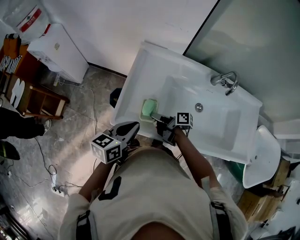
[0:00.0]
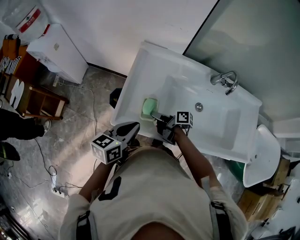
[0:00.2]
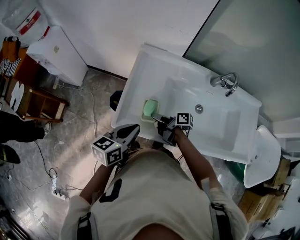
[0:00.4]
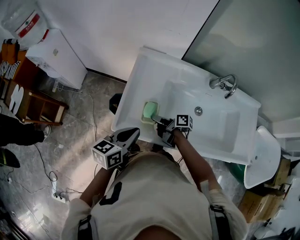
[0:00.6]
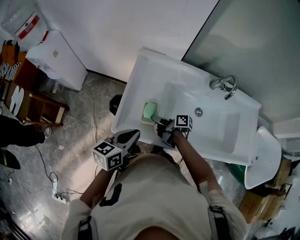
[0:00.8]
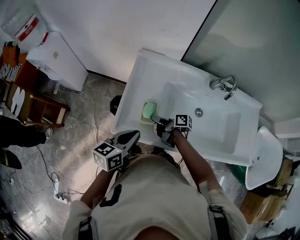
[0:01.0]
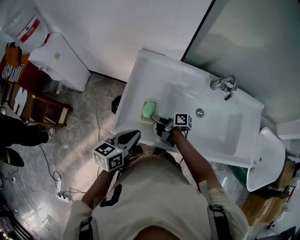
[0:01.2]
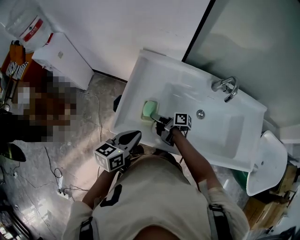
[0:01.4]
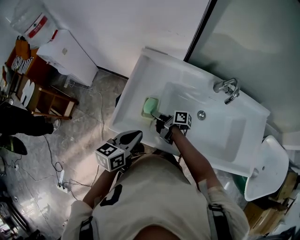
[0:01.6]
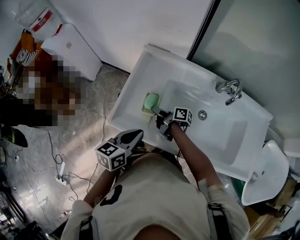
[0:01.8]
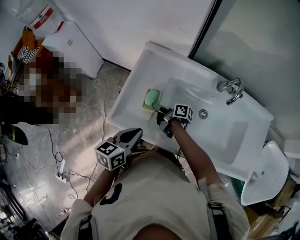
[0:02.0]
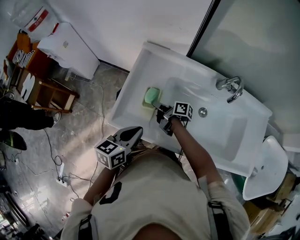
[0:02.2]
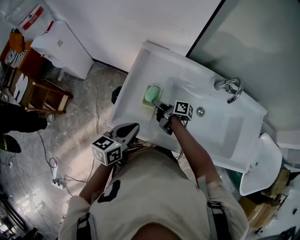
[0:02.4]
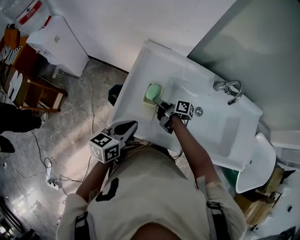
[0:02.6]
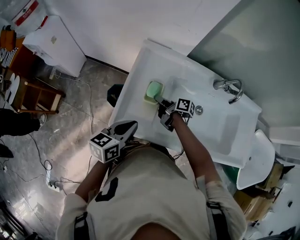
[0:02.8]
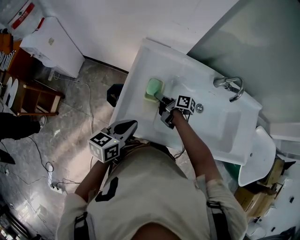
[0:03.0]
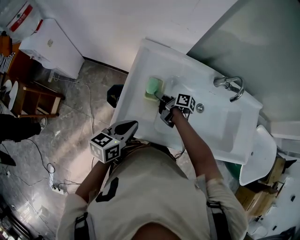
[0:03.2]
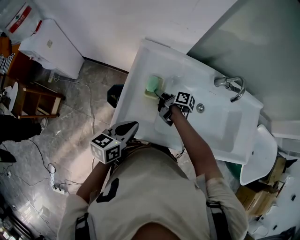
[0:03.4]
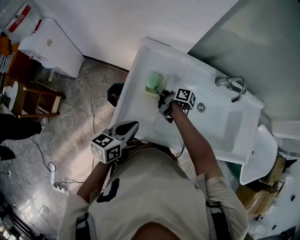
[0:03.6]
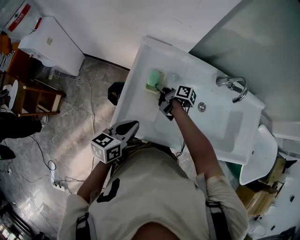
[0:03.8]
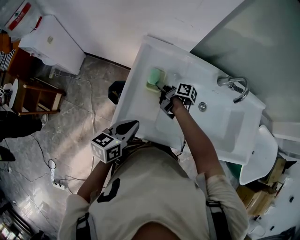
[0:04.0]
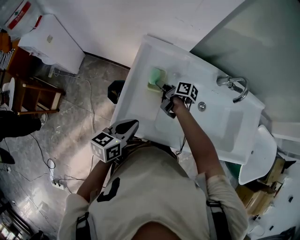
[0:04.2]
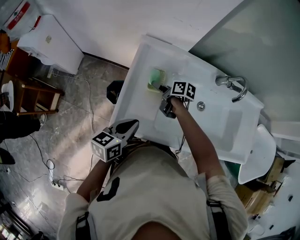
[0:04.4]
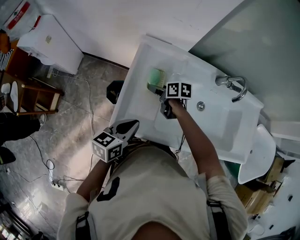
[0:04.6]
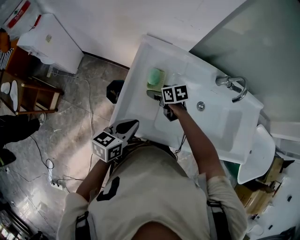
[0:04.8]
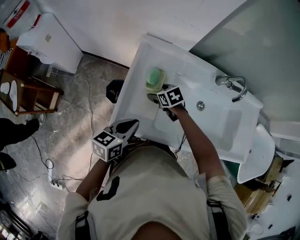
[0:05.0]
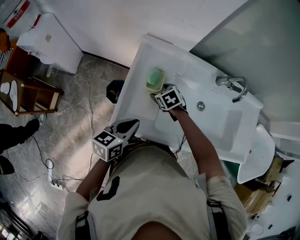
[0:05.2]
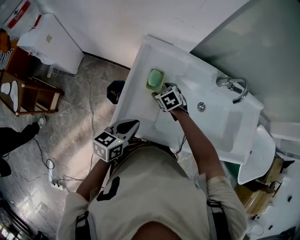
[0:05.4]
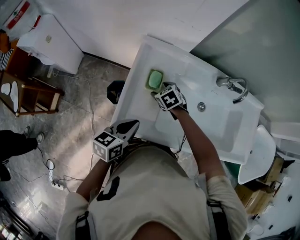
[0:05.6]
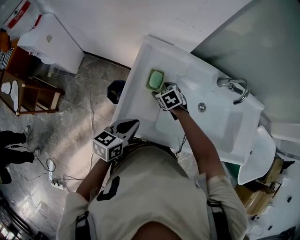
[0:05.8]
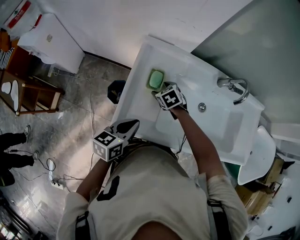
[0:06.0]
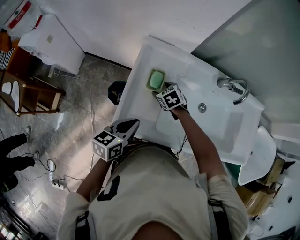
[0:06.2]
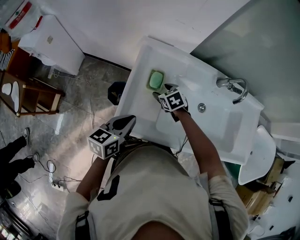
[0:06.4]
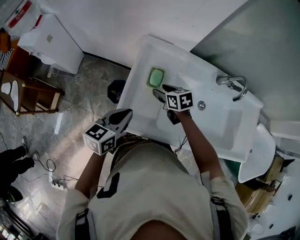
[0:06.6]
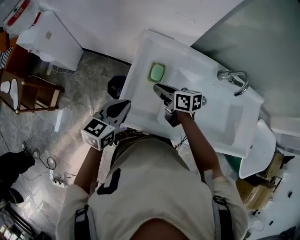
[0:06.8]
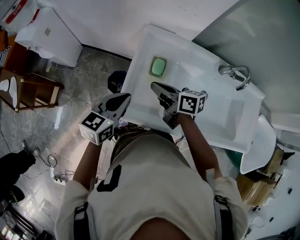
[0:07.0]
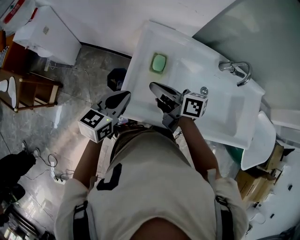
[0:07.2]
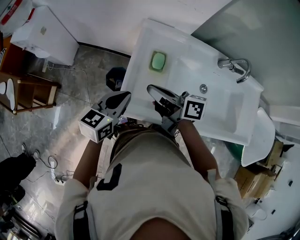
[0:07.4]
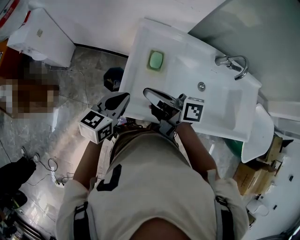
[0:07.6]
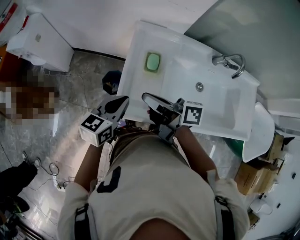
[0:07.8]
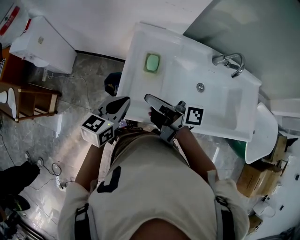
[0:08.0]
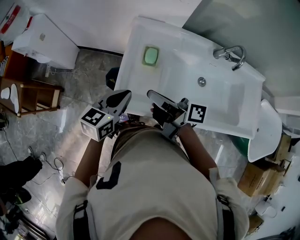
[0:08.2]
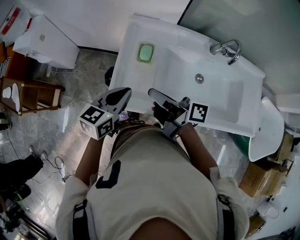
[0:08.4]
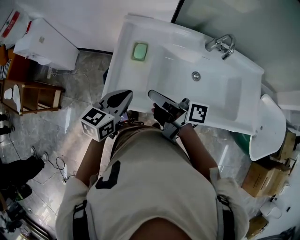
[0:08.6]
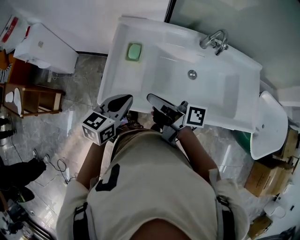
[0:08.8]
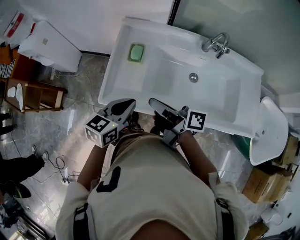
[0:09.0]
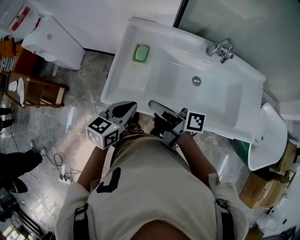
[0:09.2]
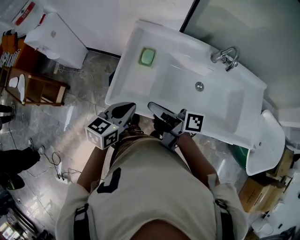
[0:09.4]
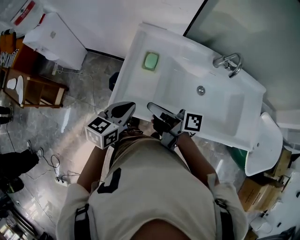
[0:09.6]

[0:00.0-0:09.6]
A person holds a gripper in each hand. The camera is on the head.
0:01.6 to 0:03.2: The left gripper moves approximately 10 cm.

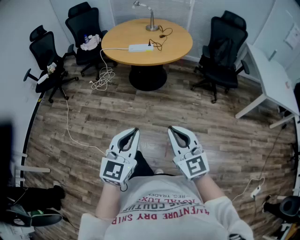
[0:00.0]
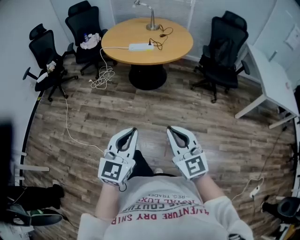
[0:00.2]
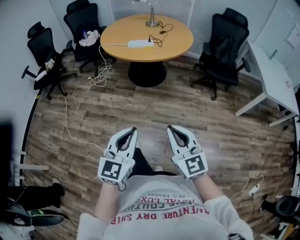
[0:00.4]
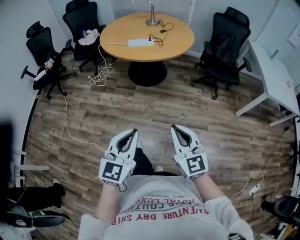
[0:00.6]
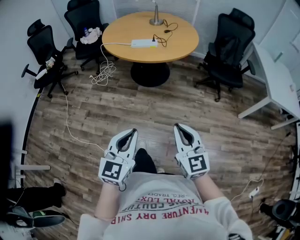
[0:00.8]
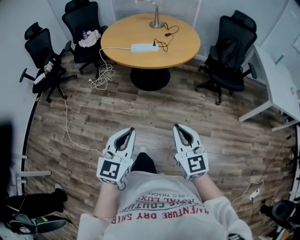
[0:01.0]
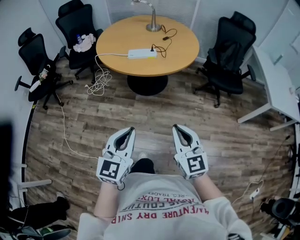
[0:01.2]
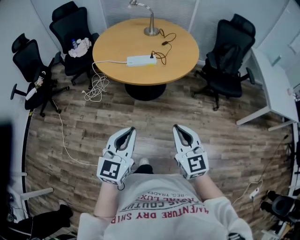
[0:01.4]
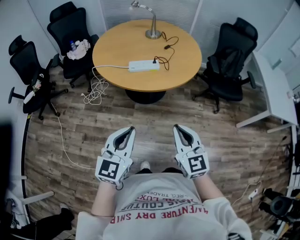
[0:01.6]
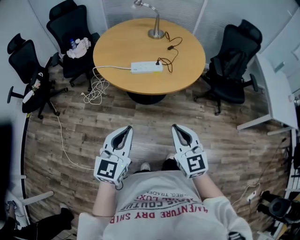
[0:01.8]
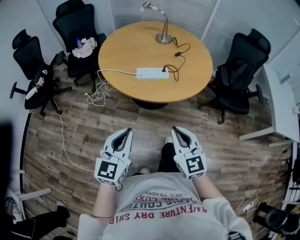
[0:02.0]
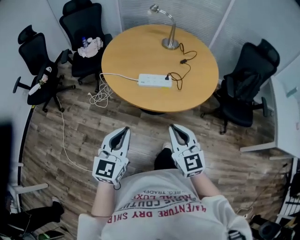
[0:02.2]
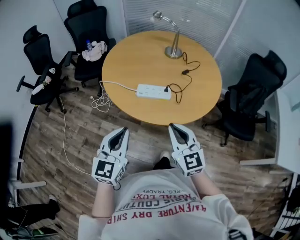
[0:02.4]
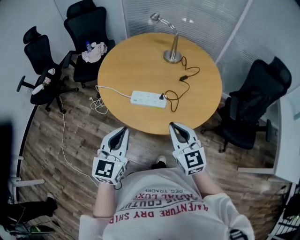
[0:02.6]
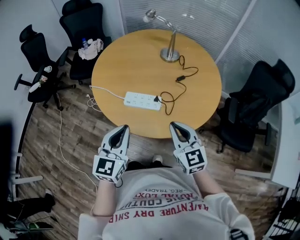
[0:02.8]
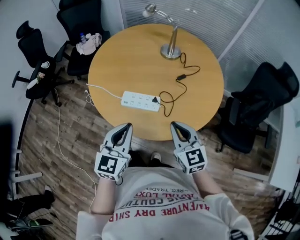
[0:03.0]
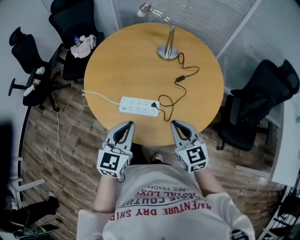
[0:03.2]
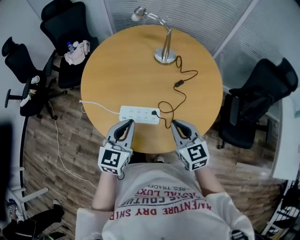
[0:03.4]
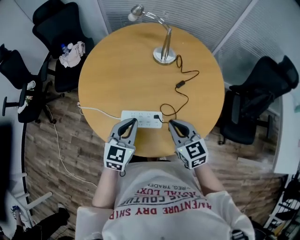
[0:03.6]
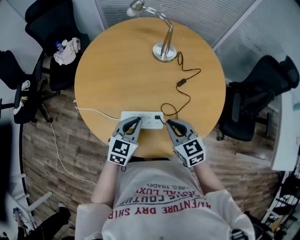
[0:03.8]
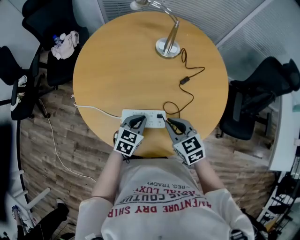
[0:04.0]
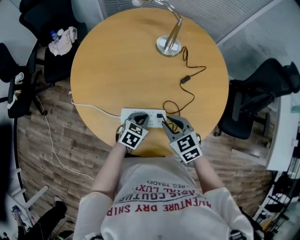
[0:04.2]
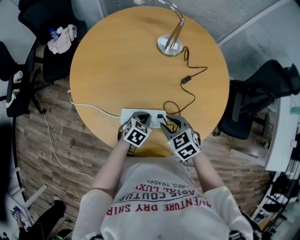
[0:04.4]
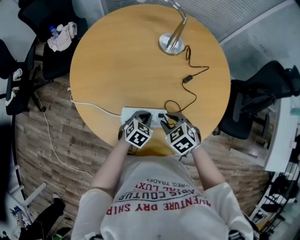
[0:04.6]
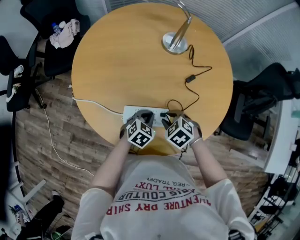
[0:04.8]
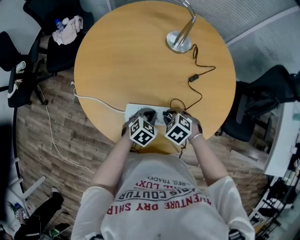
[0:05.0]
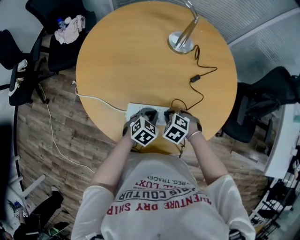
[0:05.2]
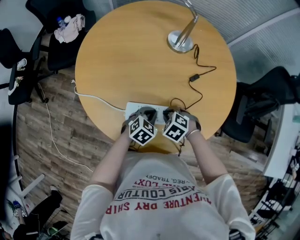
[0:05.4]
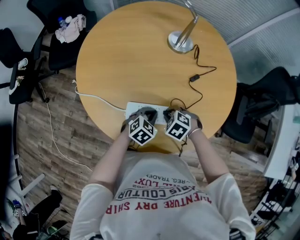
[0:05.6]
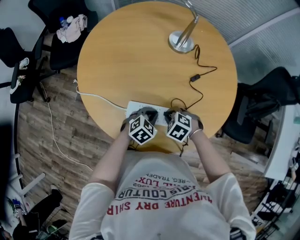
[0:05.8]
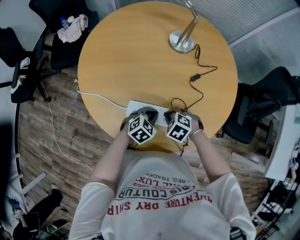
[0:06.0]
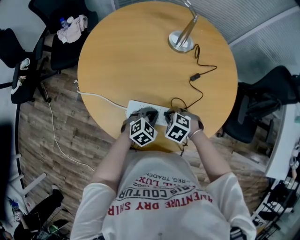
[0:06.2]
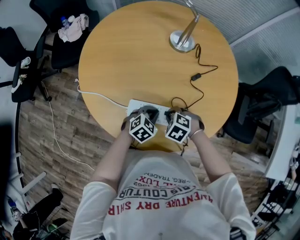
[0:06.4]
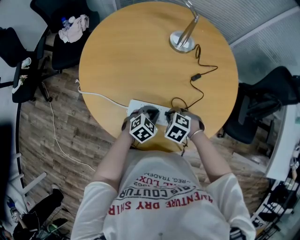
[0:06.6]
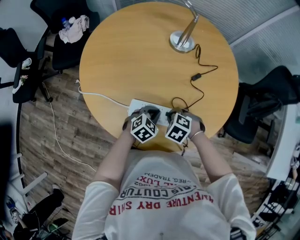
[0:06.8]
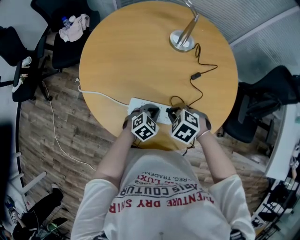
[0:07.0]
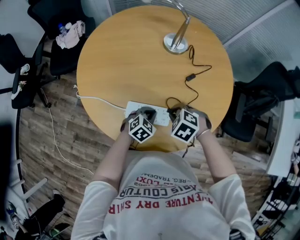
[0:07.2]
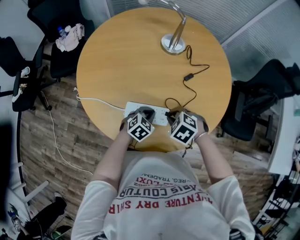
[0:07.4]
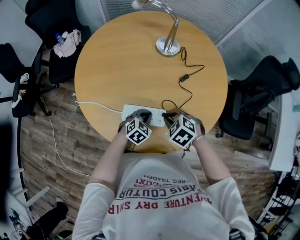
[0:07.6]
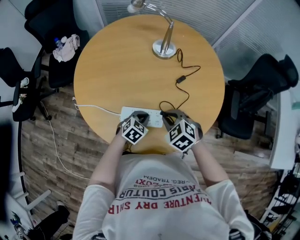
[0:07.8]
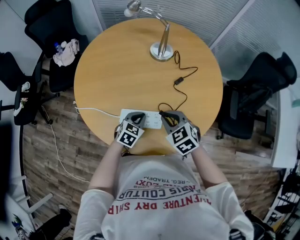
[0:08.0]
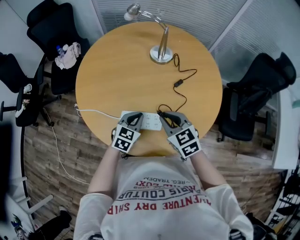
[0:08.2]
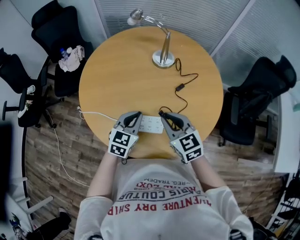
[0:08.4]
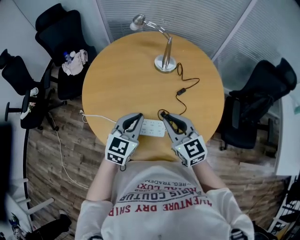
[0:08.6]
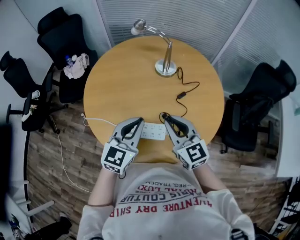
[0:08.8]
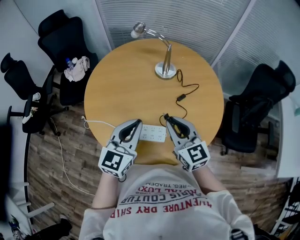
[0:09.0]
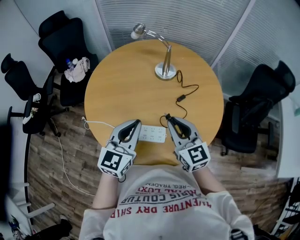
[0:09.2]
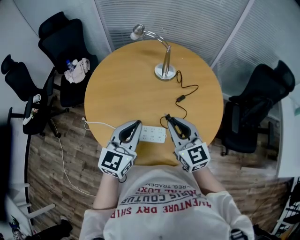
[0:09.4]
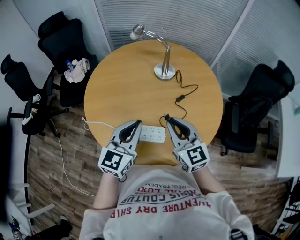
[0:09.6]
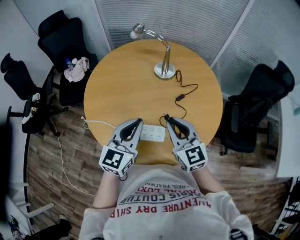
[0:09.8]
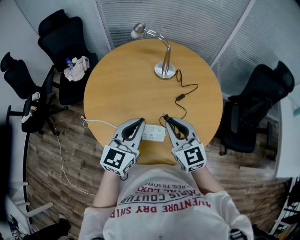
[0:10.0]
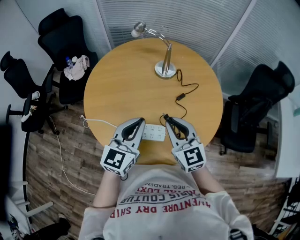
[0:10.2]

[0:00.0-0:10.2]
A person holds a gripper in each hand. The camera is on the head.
0:00.0 to 0:01.4: The two grippers go approximately 25 cm forward.
0:01.4 to 0:03.0: The pair of grippers is taken forward, approximately 40 cm. The right gripper rotates about 20 degrees.
0:03.0 to 0:04.4: The right gripper travels downward, forward and to the left by roughly 20 cm, angles its fingers downward, by roughly 40 degrees, and opens its fingers, while the left gripper goes some 30 cm downward and forward, and points its fingers some 40 degrees further downward.
0:04.4 to 0:05.8: The right gripper travels downward by roughly 10 cm, and turns by about 30 degrees.
0:05.8 to 0:07.2: The right gripper is displaced upward by about 5 cm.
0:07.2 to 0:08.8: Both grippers move upward, approximately 25 cm. The right gripper tips its fingers upward by some 60 degrees, while the left gripper angles its fingers upward, by about 40 degrees.
0:08.8 to 0:10.2: The grippers move only a little.

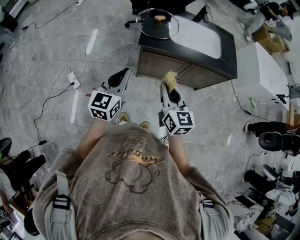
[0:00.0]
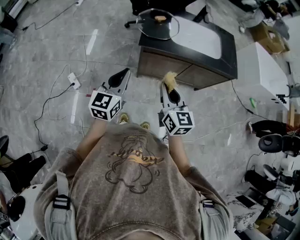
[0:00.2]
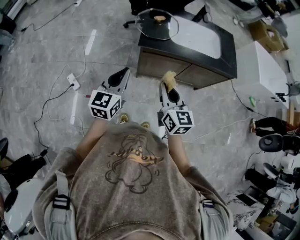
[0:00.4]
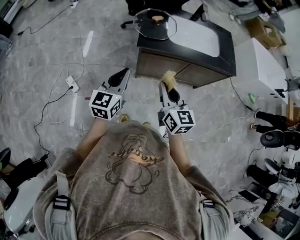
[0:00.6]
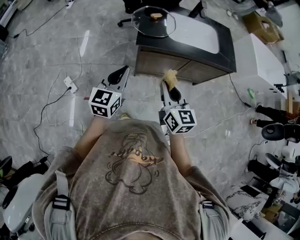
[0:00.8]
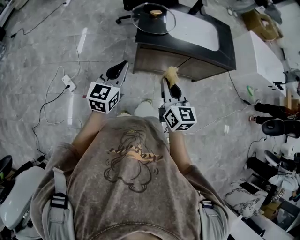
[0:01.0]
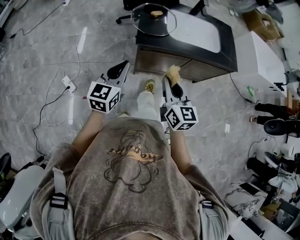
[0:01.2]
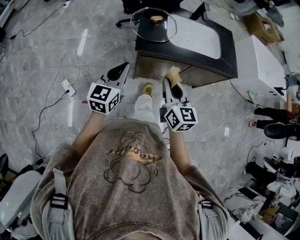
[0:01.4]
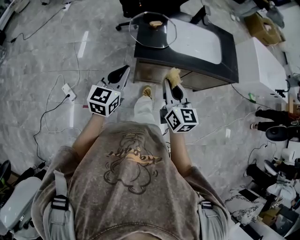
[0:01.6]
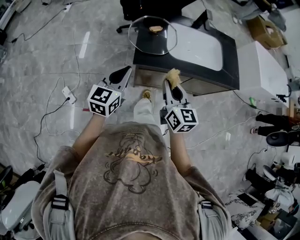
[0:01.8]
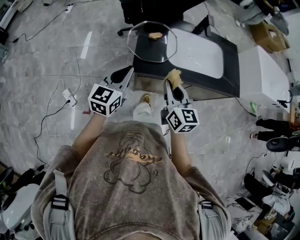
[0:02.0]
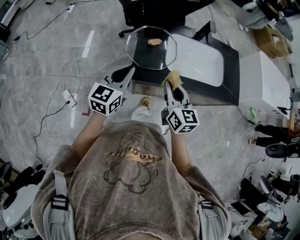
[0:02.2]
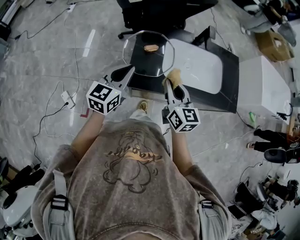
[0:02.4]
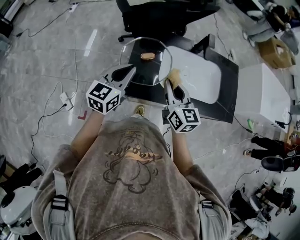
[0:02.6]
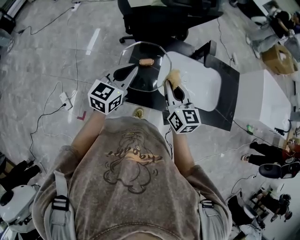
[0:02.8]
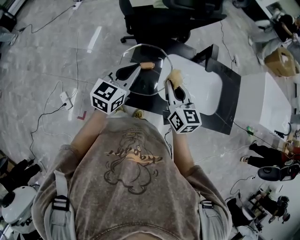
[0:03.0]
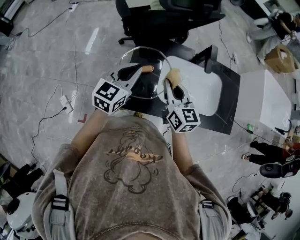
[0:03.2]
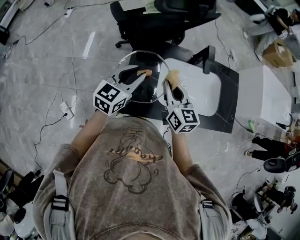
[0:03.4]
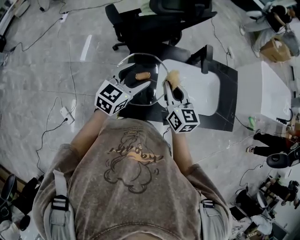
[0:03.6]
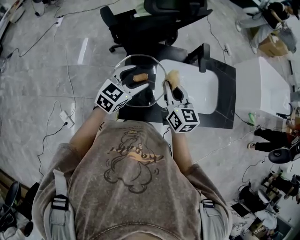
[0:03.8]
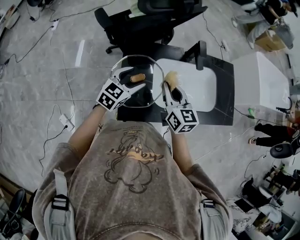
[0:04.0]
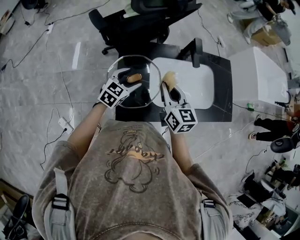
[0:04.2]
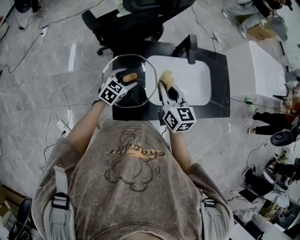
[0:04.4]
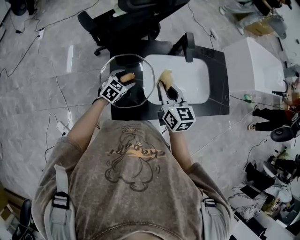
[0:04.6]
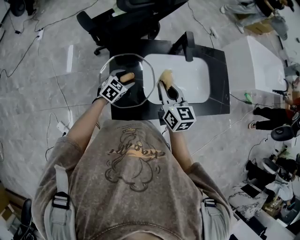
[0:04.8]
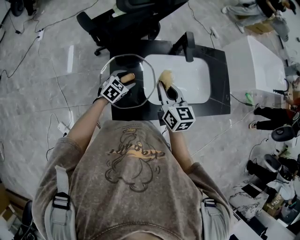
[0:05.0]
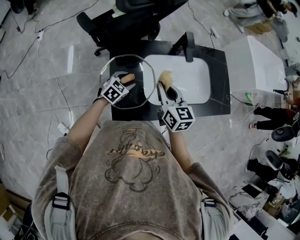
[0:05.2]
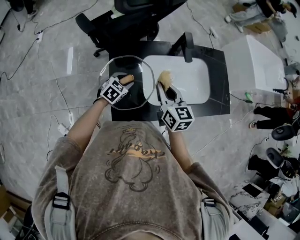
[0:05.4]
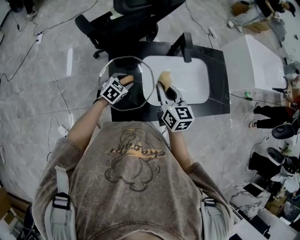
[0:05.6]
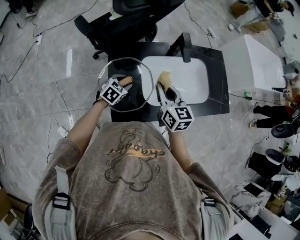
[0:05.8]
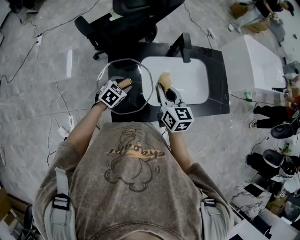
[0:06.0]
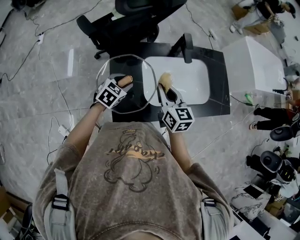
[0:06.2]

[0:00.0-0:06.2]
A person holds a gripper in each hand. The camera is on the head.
0:00.0 to 0:01.6: Both grippers travel together forward, some 15 cm.
0:01.6 to 0:03.2: The grippers both shift forward by about 30 cm.
0:03.2 to 0:04.6: The right gripper moves roughly 5 cm. The left gripper is displaced downward by roughly 20 cm, turns by some 40 degrees, and opens its fingers.
0:04.6 to 0:06.2: The left gripper shifts about 5 cm upward, and closes.
